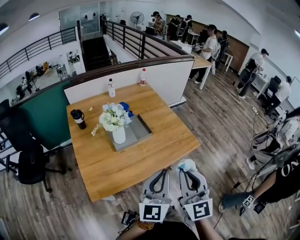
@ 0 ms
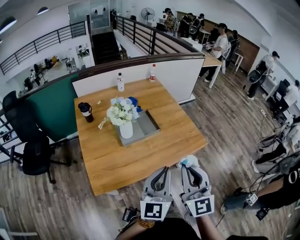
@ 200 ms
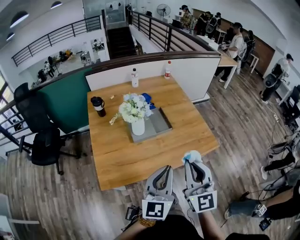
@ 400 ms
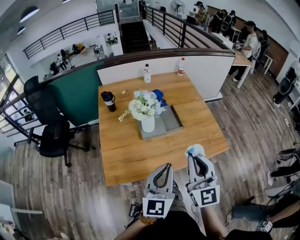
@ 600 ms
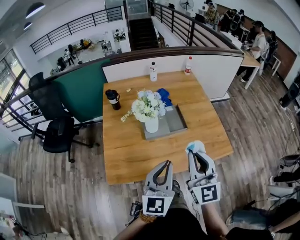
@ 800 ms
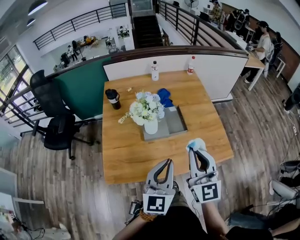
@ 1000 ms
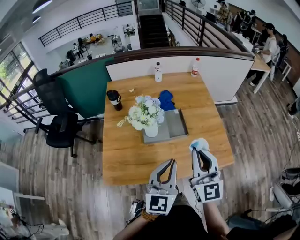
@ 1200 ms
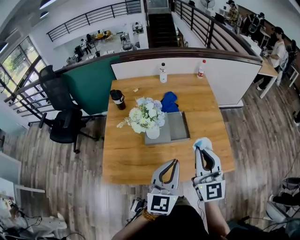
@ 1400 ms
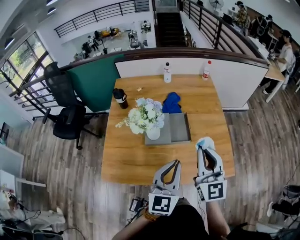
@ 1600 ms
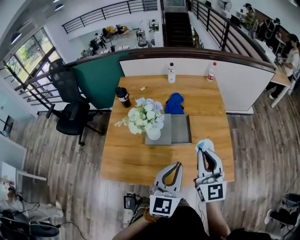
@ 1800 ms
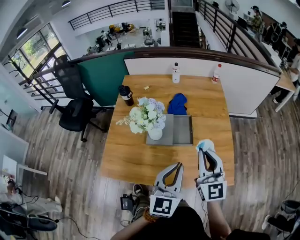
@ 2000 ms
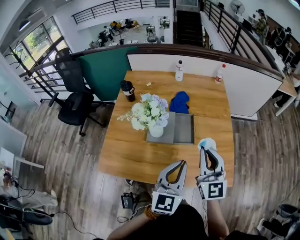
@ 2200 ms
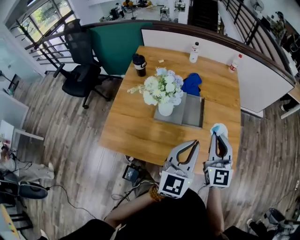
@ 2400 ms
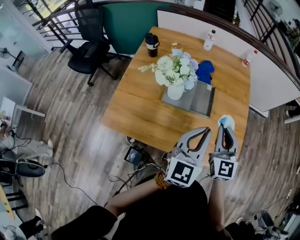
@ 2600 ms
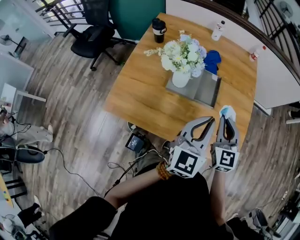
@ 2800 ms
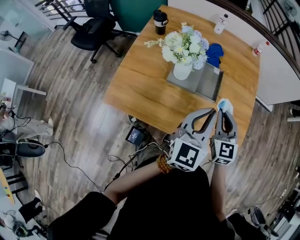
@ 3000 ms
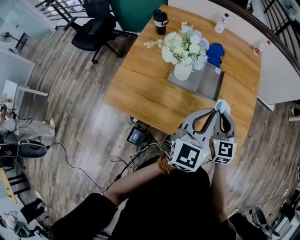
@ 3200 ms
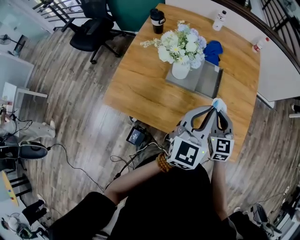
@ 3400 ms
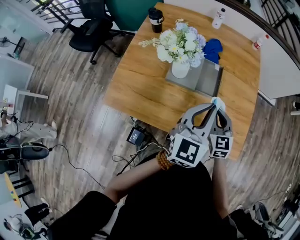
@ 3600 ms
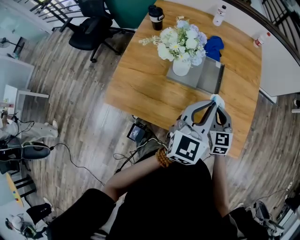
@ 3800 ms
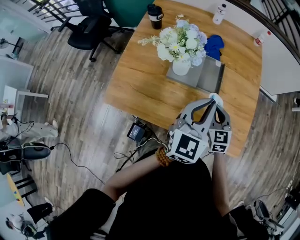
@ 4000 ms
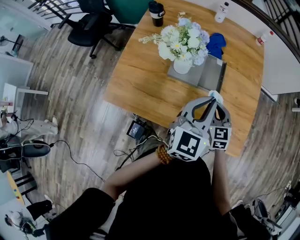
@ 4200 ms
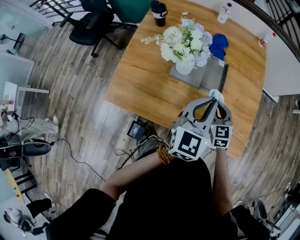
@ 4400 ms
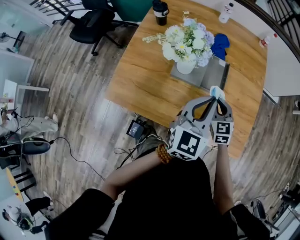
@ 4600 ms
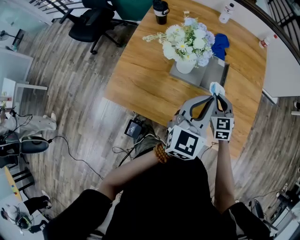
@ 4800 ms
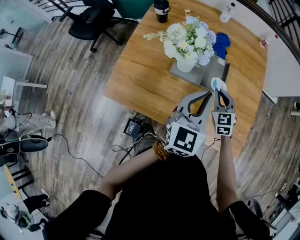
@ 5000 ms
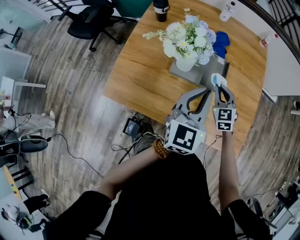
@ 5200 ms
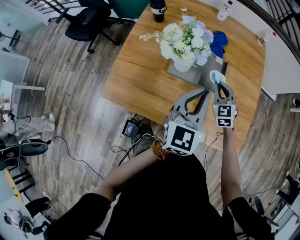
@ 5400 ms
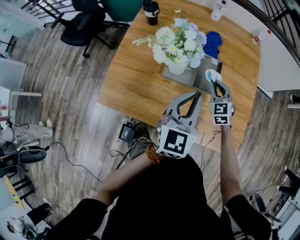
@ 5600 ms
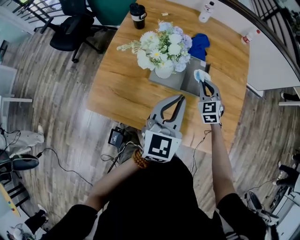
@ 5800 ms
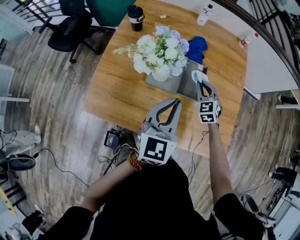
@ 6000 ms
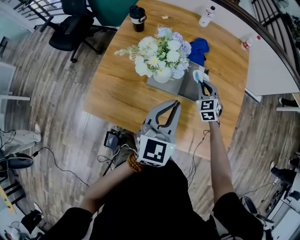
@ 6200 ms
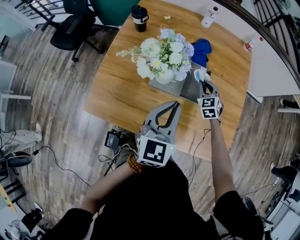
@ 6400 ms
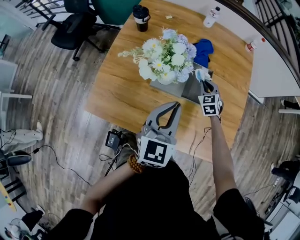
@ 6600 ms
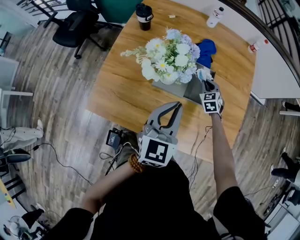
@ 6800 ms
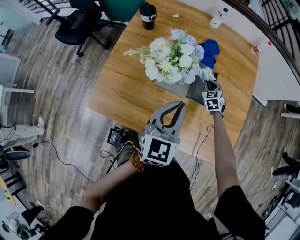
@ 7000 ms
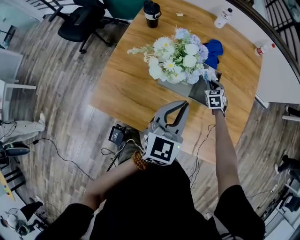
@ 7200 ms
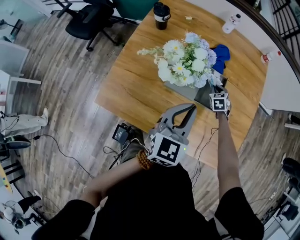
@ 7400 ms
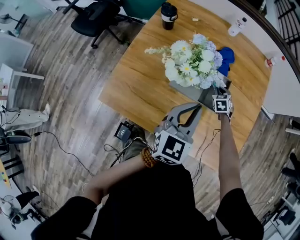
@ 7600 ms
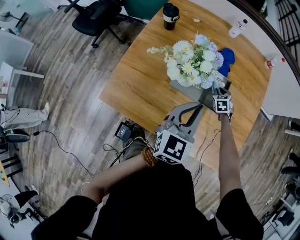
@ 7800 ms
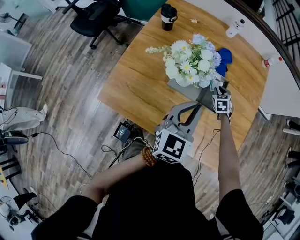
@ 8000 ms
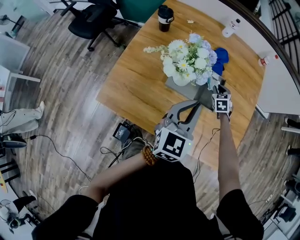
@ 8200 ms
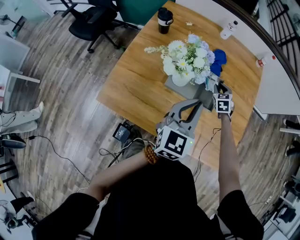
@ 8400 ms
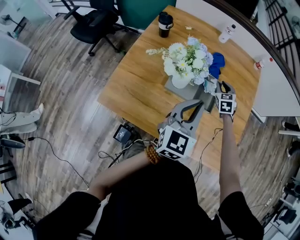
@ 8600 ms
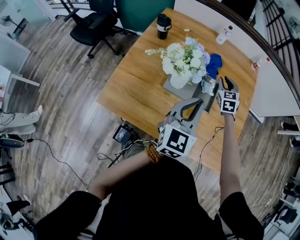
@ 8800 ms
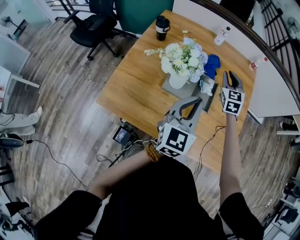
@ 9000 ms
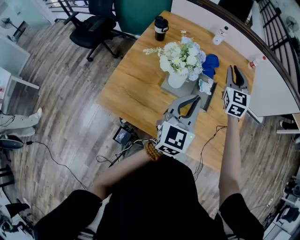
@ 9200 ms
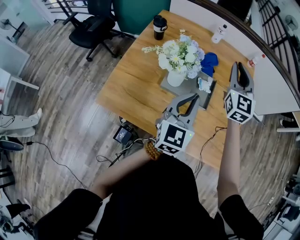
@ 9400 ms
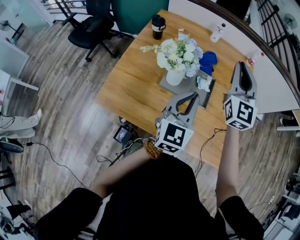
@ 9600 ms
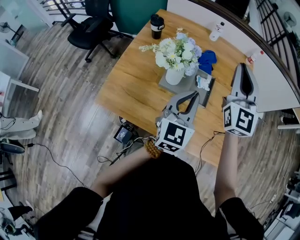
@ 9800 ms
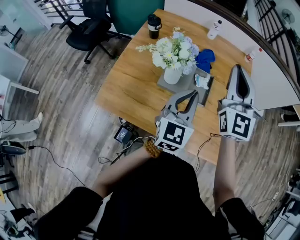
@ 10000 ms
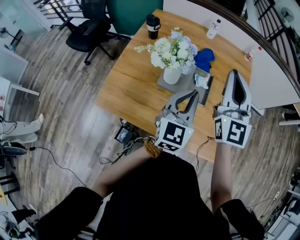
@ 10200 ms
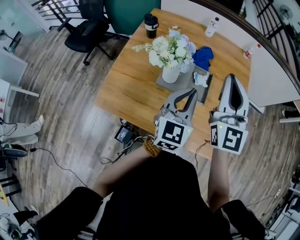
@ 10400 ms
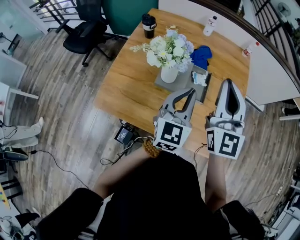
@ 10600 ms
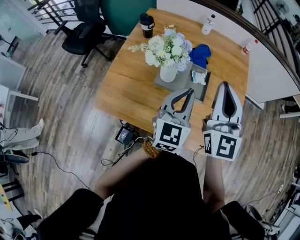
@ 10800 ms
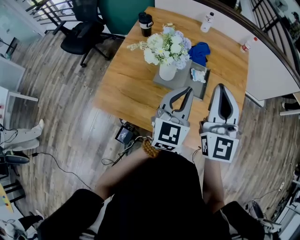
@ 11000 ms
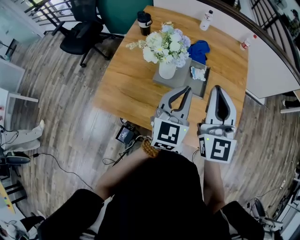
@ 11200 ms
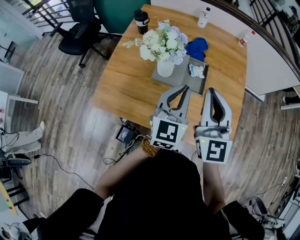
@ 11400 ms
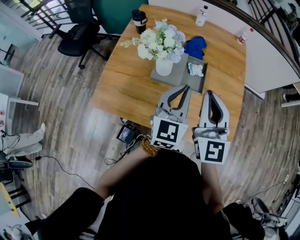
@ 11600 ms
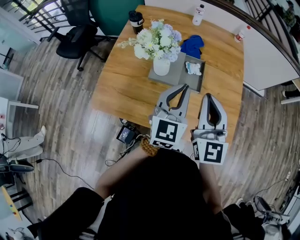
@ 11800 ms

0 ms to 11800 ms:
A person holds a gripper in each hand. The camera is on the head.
0 ms to 1400 ms: Both grippers move forward, approximately 20 cm. The left gripper rotates approximately 20 degrees. The right gripper turns by approximately 20 degrees.
1400 ms to 3000 ms: The left gripper is displaced forward and to the right by about 10 cm, while the right gripper heads downward and forward, covering approximately 20 cm, and swivels roughly 20 degrees.
3000 ms to 4400 ms: The left gripper moves roughly 5 cm. The right gripper goes about 10 cm downward.
4400 ms to 6000 ms: The left gripper shifts by some 5 cm. The right gripper moves forward, roughly 15 cm.
6000 ms to 7400 ms: The right gripper travels downward and forward by roughly 15 cm, and changes its angle by roughly 20 degrees.
7400 ms to 8800 ms: The right gripper shifts some 20 cm upward, and rotates about 20 degrees. Meanwhile the left gripper moves roughly 5 cm.
8800 ms to 10400 ms: The right gripper moves upward and backward, roughly 35 cm, points its fingers some 40 degrees further upward, and closes.
10400 ms to 11800 ms: The right gripper travels downward and backward by about 10 cm.

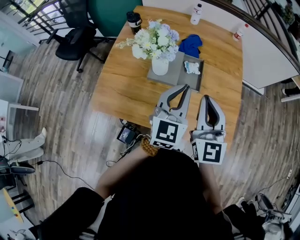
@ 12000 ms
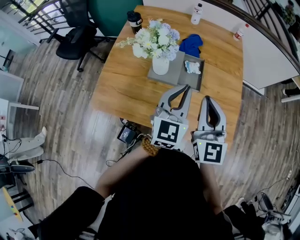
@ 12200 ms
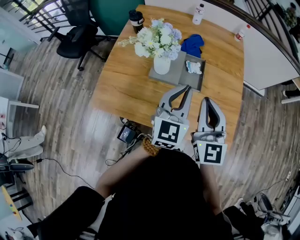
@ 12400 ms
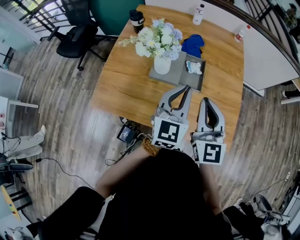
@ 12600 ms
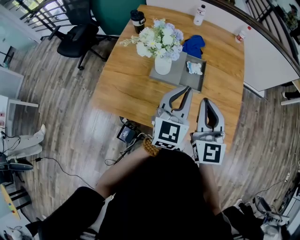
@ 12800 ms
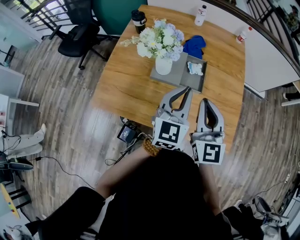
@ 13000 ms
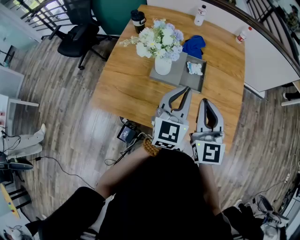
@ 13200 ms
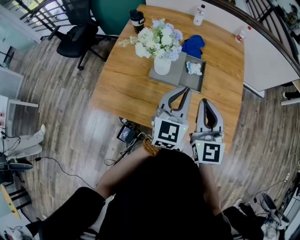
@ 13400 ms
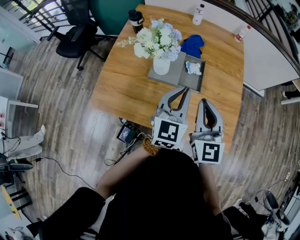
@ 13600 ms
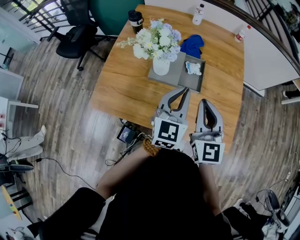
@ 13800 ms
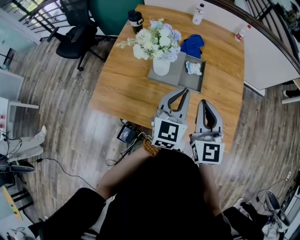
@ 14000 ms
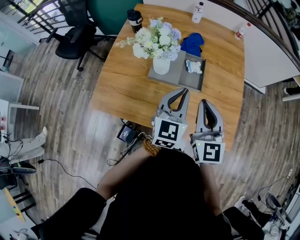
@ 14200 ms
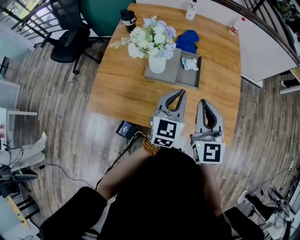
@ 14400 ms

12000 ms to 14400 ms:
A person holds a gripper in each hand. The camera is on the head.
12000 ms to 13200 ms: The grippers move only a little.
13200 ms to 14400 ms: The left gripper heads downward, covering about 5 cm.

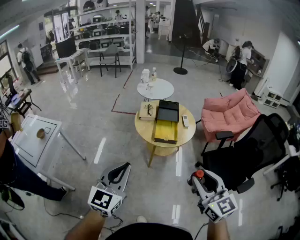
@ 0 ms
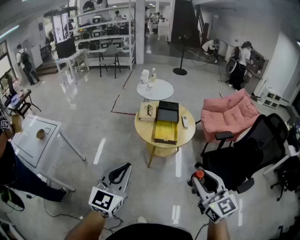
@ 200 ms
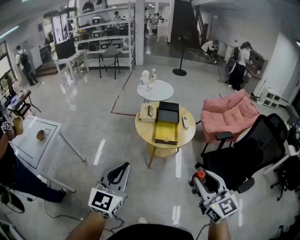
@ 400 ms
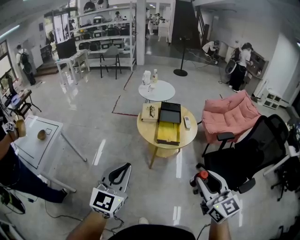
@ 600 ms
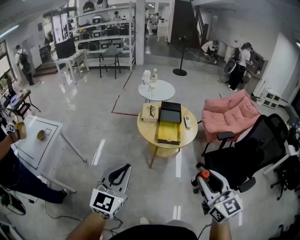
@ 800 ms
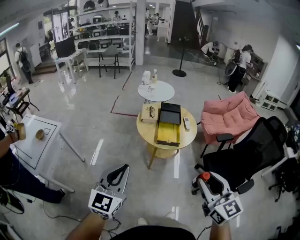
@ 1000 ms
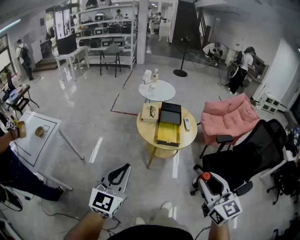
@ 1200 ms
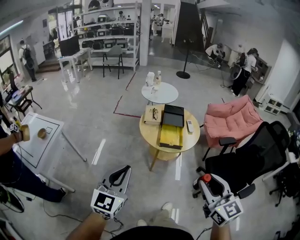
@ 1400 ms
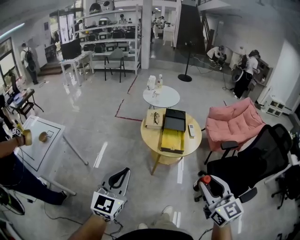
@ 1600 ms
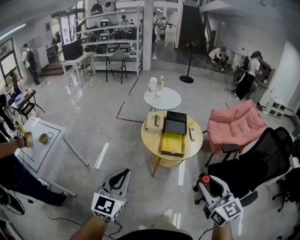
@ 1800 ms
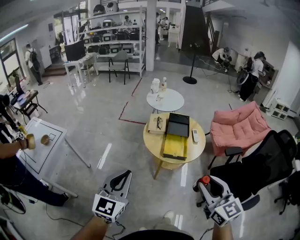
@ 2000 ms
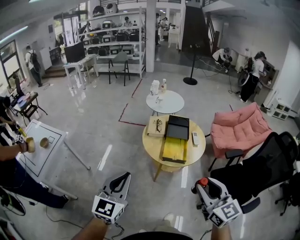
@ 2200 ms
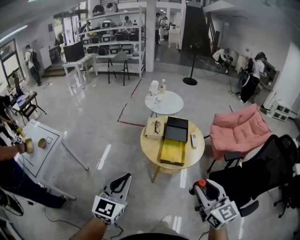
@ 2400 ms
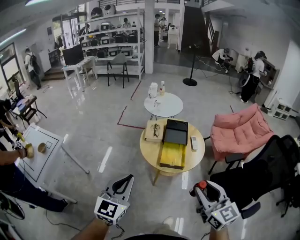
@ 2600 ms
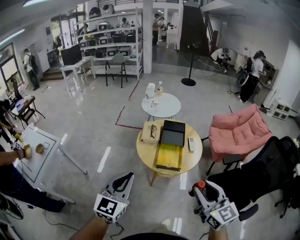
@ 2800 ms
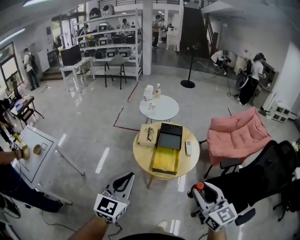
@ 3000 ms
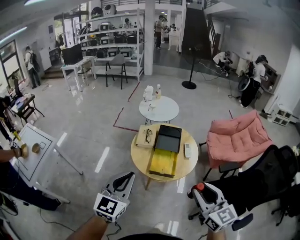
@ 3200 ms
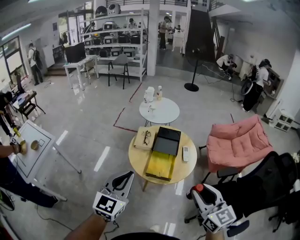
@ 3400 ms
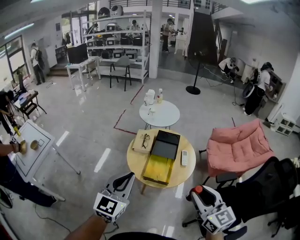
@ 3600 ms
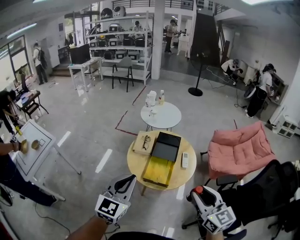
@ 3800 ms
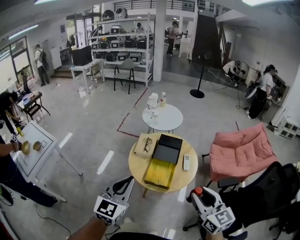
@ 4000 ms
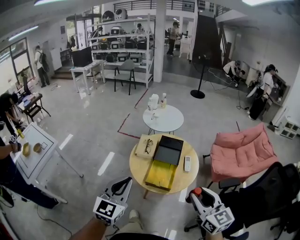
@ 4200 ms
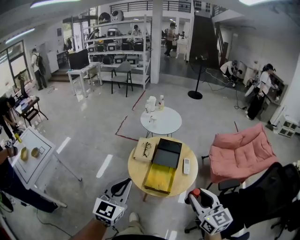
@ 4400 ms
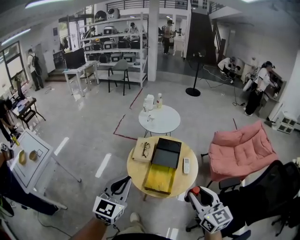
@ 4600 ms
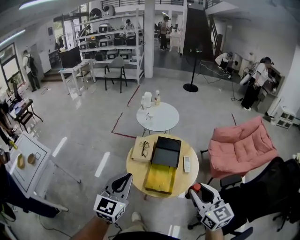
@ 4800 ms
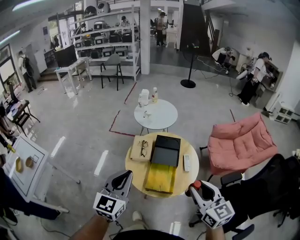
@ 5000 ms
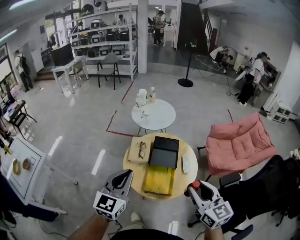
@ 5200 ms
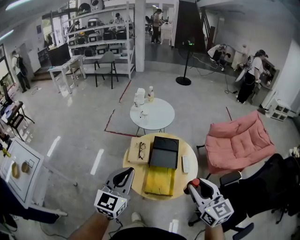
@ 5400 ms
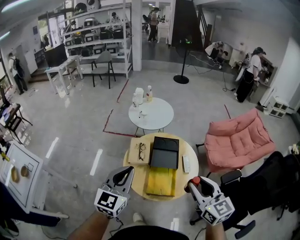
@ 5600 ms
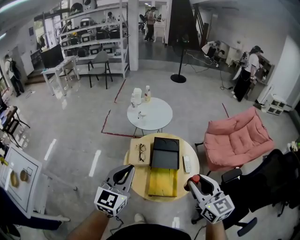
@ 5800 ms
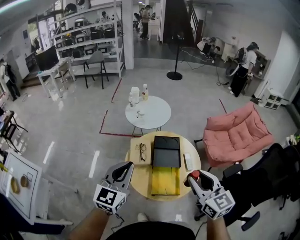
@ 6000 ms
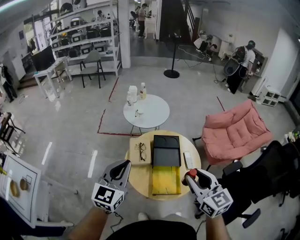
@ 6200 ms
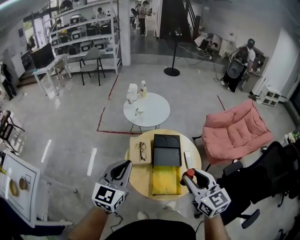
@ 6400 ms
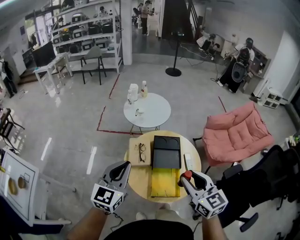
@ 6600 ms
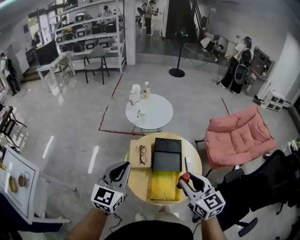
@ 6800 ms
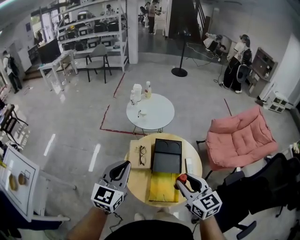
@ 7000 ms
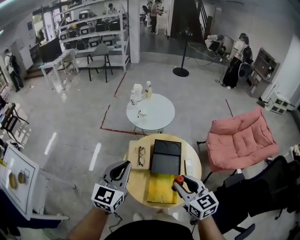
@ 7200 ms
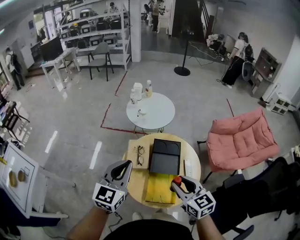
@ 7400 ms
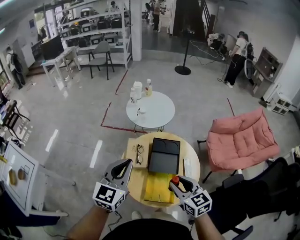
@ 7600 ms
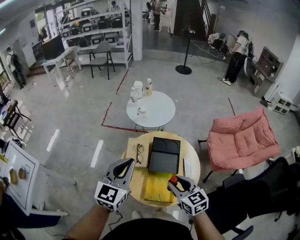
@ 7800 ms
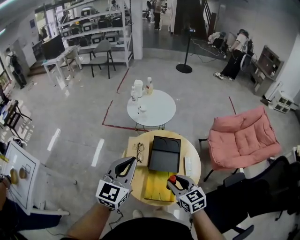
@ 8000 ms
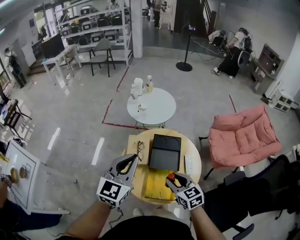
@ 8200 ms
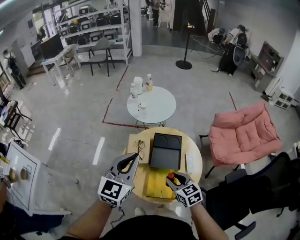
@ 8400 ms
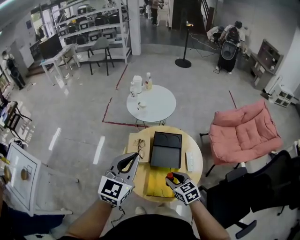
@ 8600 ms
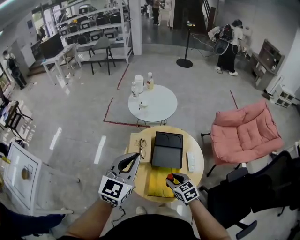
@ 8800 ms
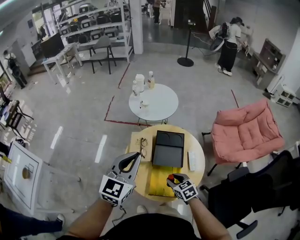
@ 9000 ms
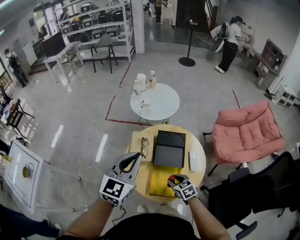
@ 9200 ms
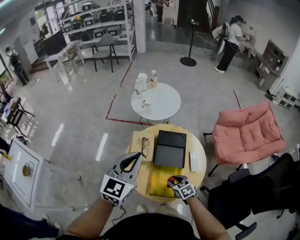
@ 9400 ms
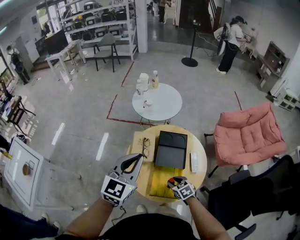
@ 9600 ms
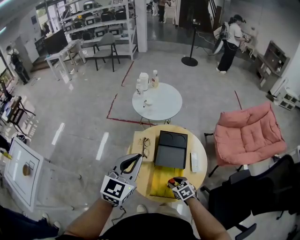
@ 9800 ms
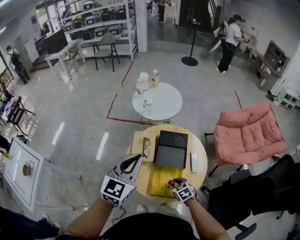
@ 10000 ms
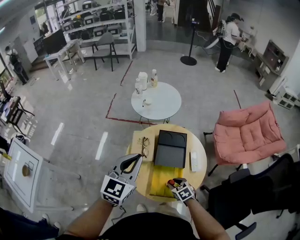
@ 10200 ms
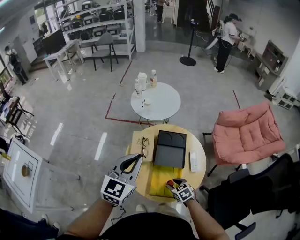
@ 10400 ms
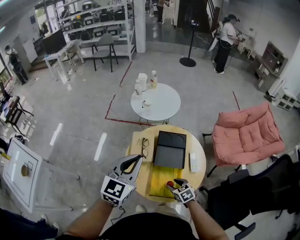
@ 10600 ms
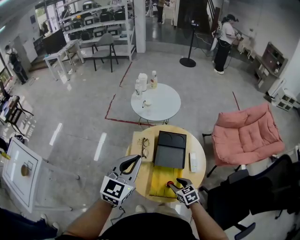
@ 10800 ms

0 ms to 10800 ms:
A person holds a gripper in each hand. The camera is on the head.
0 ms to 1600 ms: The left gripper heads to the left, covering roughly 5 cm.
1600 ms to 3000 ms: The grippers both shift forward and to the right by roughly 20 cm.
3000 ms to 4600 ms: The two grippers go approximately 15 cm forward and to the right.
4600 ms to 6200 ms: The left gripper travels forward by some 20 cm; the right gripper goes roughly 15 cm forward and to the left.
6200 ms to 7800 ms: The right gripper travels downward and forward by approximately 15 cm. The left gripper goes roughly 10 cm to the right and forward.
7800 ms to 9200 ms: The right gripper moves downward, some 20 cm, and rotates approximately 20 degrees.
9200 ms to 10800 ms: The grippers stay close to where they were, moving slightly.
